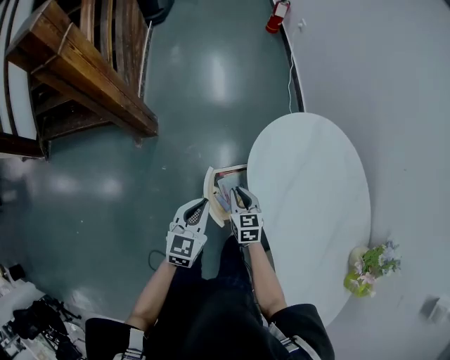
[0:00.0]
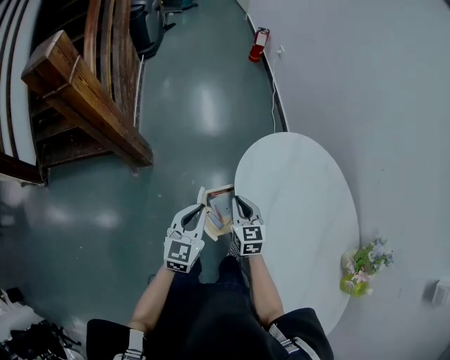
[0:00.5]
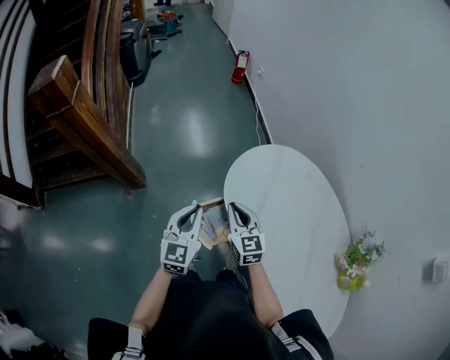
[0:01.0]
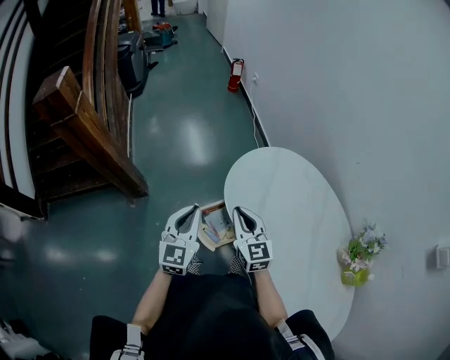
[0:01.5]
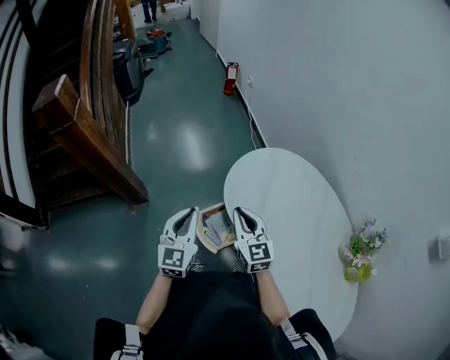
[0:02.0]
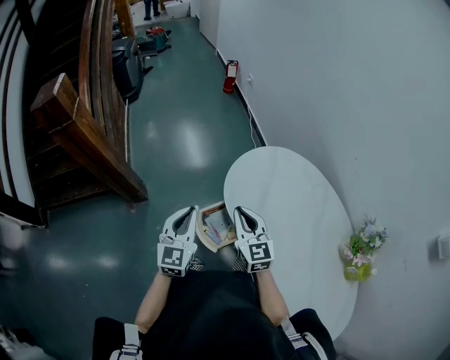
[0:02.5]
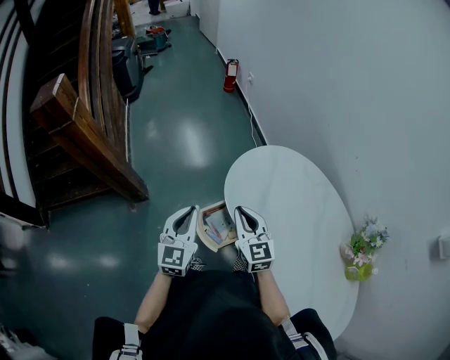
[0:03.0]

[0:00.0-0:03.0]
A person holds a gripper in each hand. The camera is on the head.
0:00.0 to 0:01.5: Both grippers travel together upward, approximately 20 cm. The left gripper rotates about 20 degrees; the right gripper turns by some 30 degrees.
0:01.5 to 0:03.0: Neither gripper changes place.

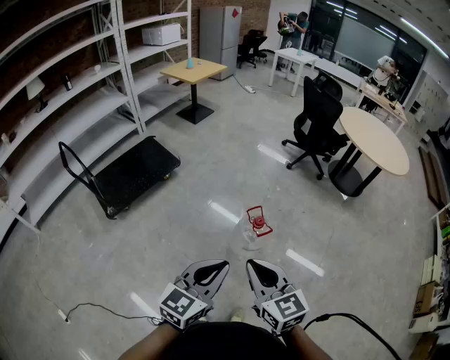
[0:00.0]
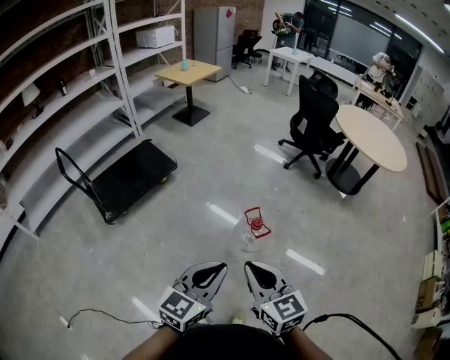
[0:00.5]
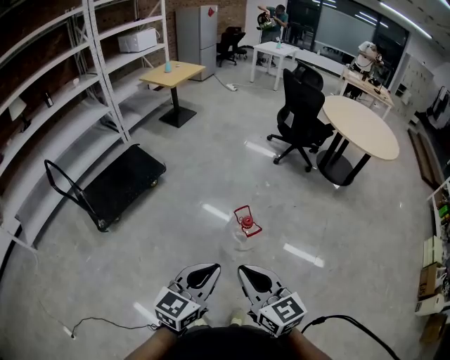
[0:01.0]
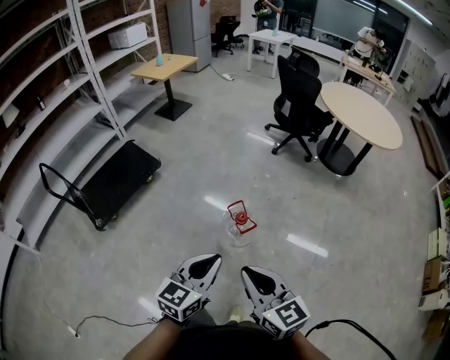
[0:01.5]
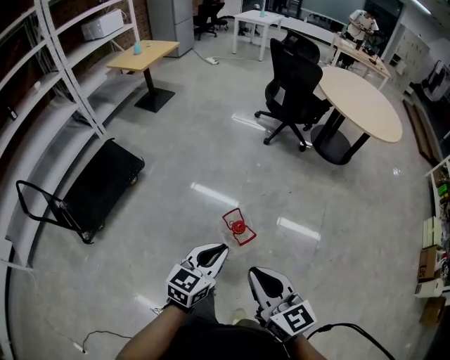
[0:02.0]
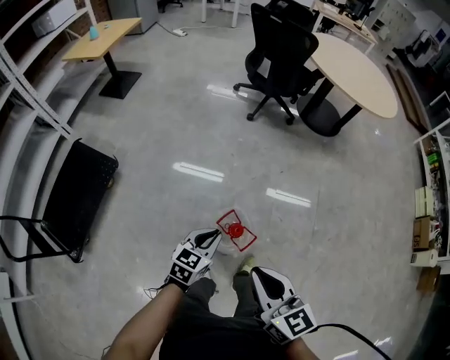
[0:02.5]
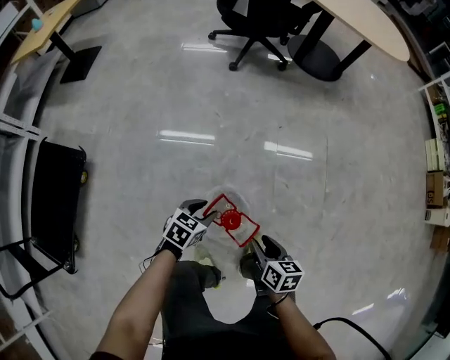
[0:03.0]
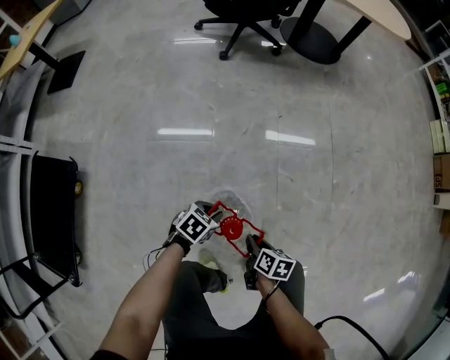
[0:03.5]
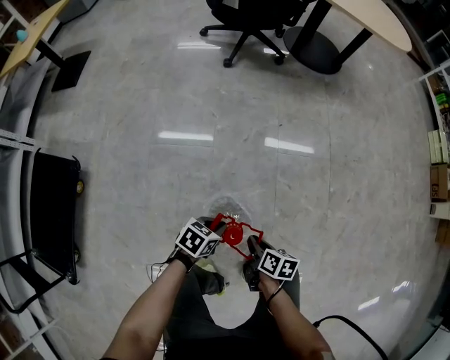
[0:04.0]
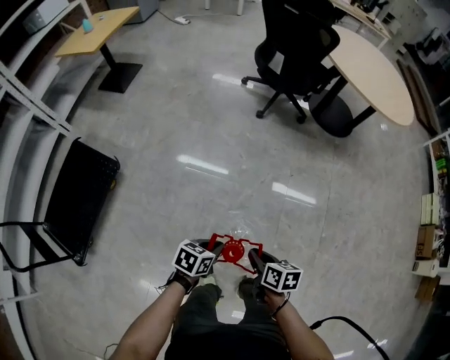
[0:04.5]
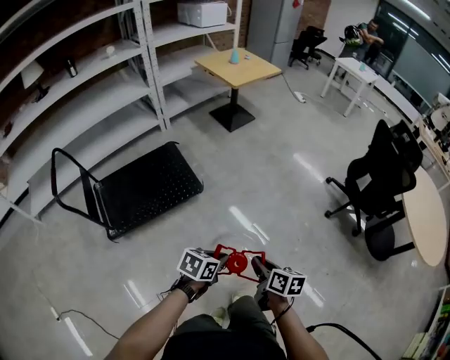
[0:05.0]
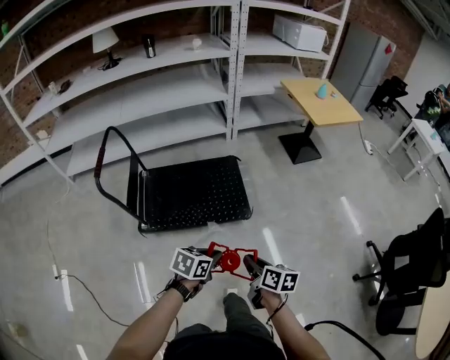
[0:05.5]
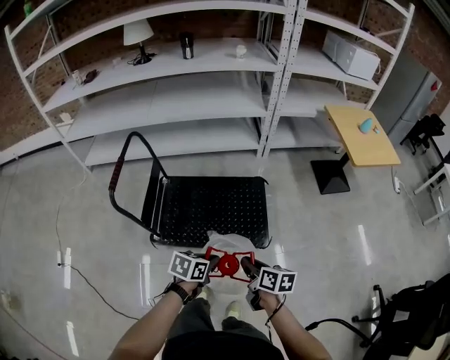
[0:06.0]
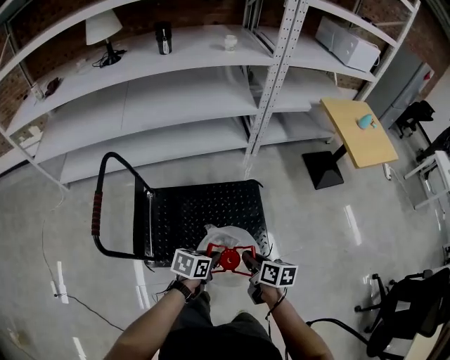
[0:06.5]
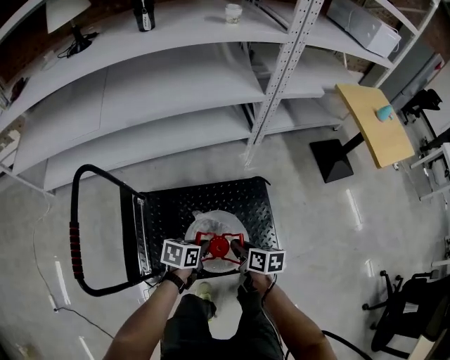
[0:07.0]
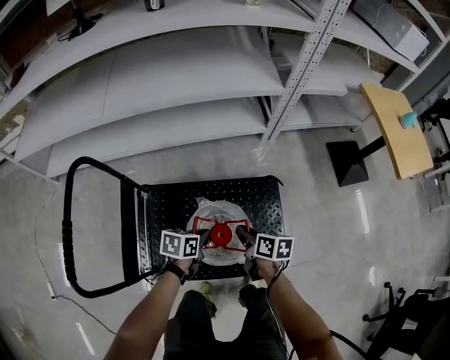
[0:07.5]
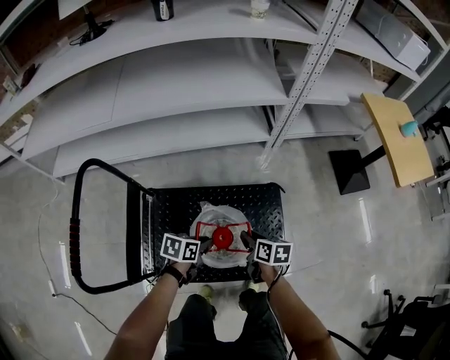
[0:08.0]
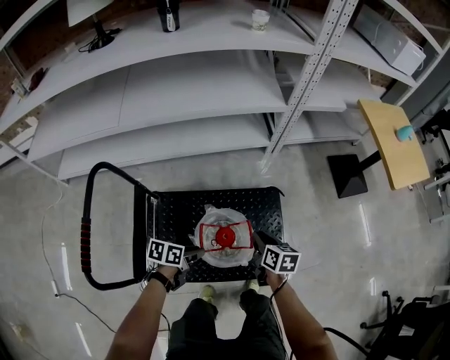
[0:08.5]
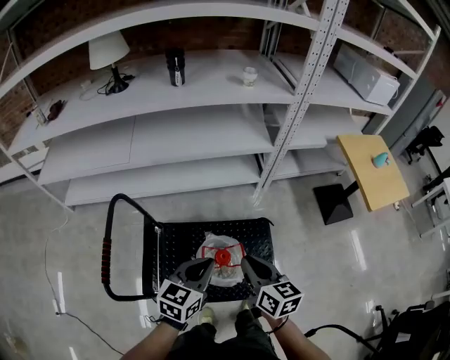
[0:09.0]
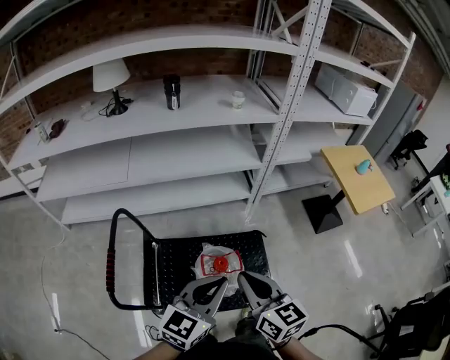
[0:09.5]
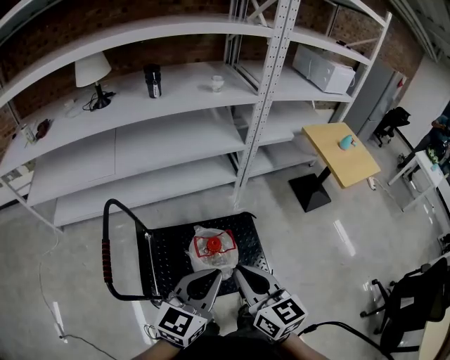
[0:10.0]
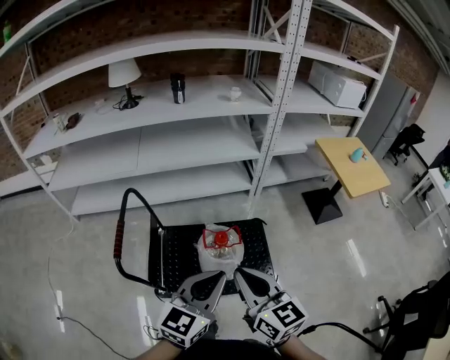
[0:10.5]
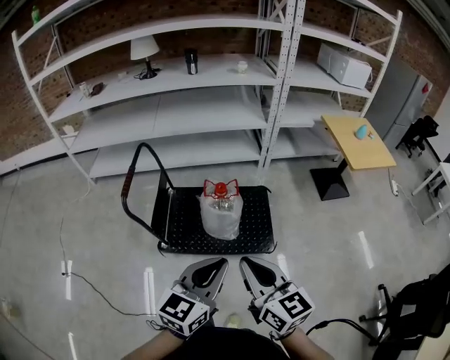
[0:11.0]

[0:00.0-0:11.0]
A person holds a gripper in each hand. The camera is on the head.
0:00.0 to 0:02.0: The left gripper moves forward and downward, some 30 cm, while the right gripper is displaced forward and to the right by some 20 cm.
0:02.0 to 0:03.5: Both grippers travel together downward, about 60 cm. The right gripper tilts its fingers about 40 degrees downward. Meanwhile the left gripper tips its fingers downward by some 40 degrees.
0:03.5 to 0:05.5: Both grippers are carried about 70 cm. The right gripper changes its angle by about 80 degrees, while the left gripper rotates roughly 90 degrees, and closes.
0:05.5 to 0:07.5: Both grippers are carried forward and to the left, approximately 70 cm. The left gripper goes roughly 25 cm downward, and changes its angle by roughly 20 degrees.
0:07.5 to 0:09.0: The two grippers go some 35 cm upward. The right gripper changes its angle by roughly 30 degrees; the left gripper swivels approximately 40 degrees, and opens and closes again.
0:09.0 to 0:11.0: Both grippers are carried backward, about 50 cm. The right gripper swivels some 20 degrees.

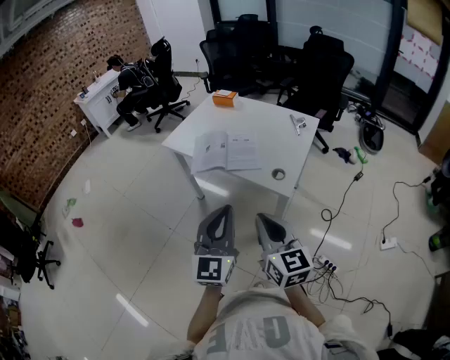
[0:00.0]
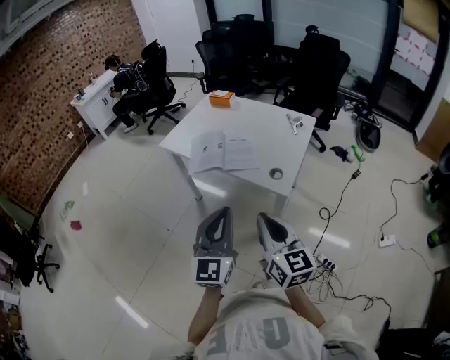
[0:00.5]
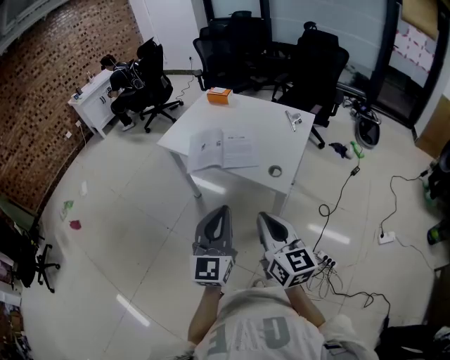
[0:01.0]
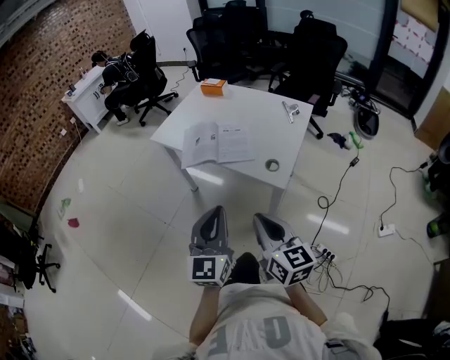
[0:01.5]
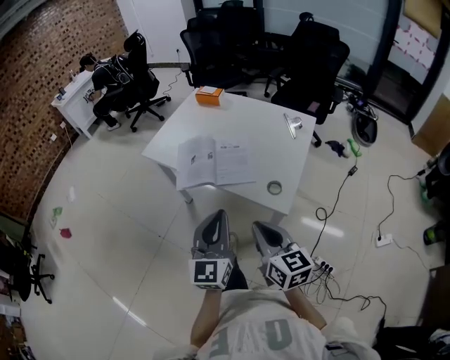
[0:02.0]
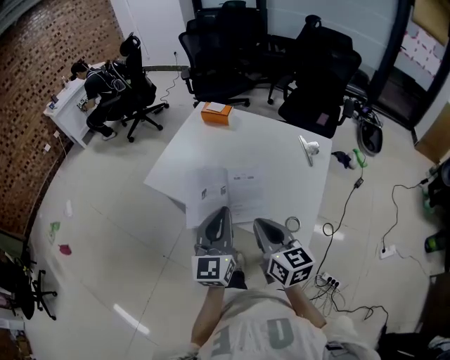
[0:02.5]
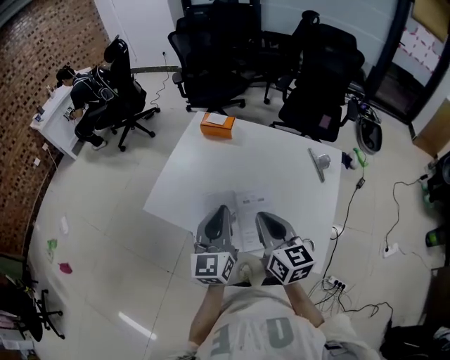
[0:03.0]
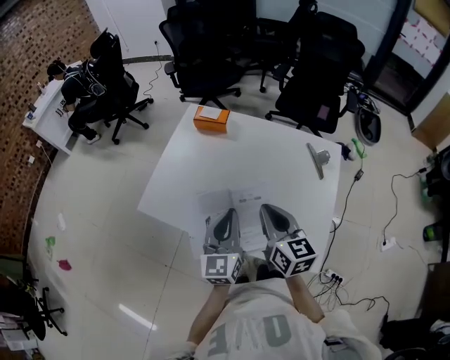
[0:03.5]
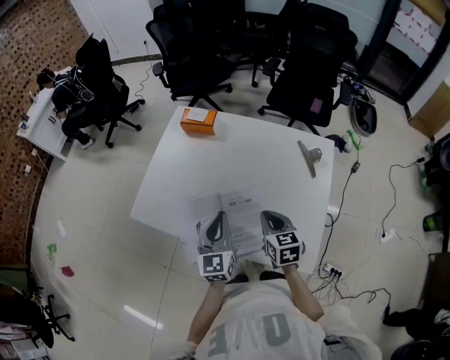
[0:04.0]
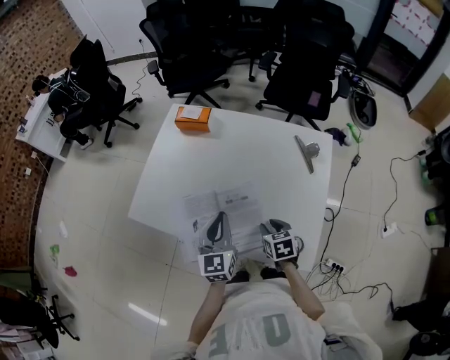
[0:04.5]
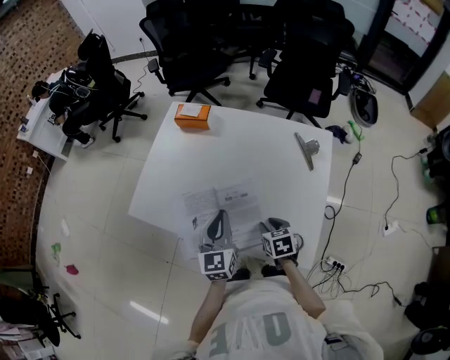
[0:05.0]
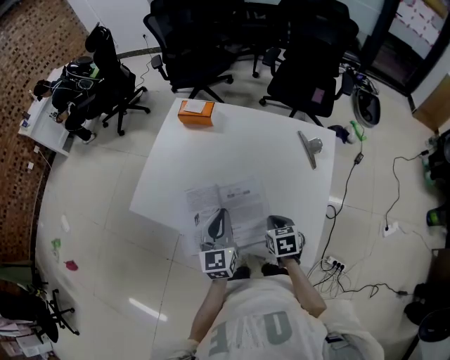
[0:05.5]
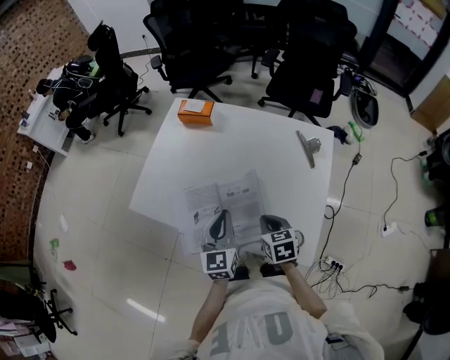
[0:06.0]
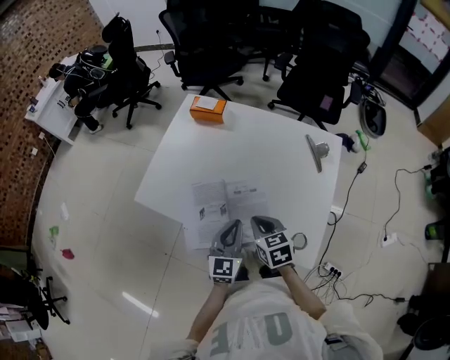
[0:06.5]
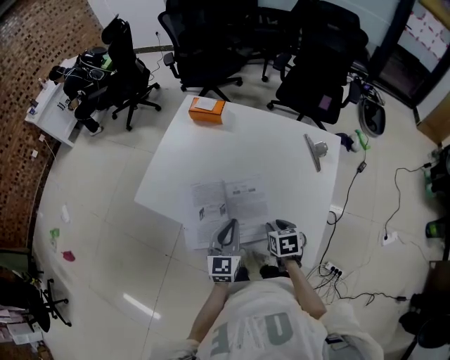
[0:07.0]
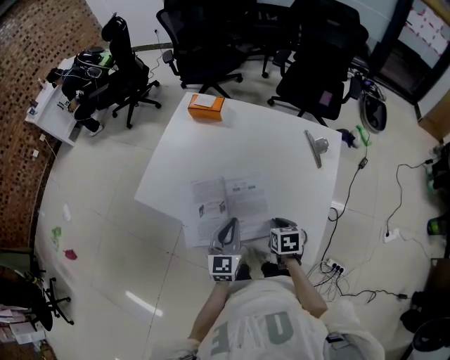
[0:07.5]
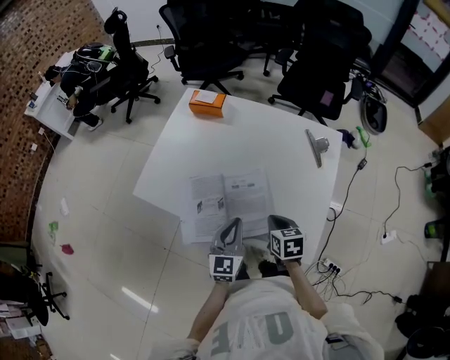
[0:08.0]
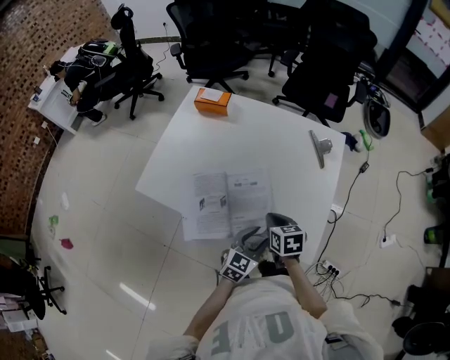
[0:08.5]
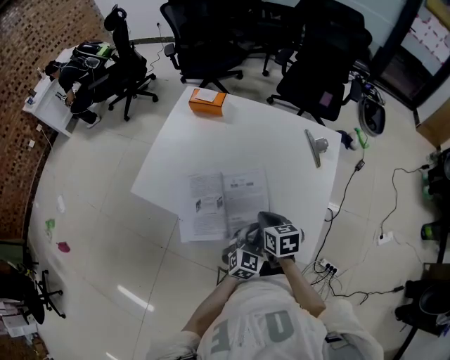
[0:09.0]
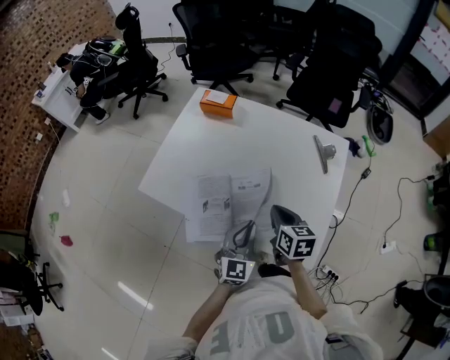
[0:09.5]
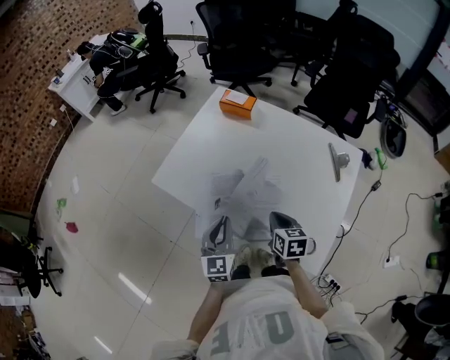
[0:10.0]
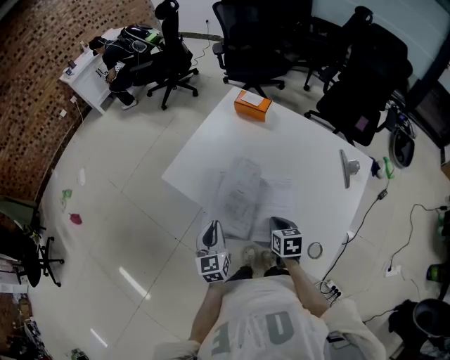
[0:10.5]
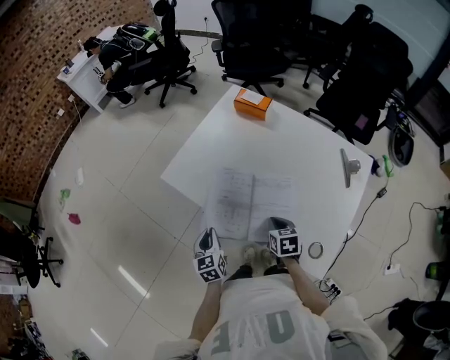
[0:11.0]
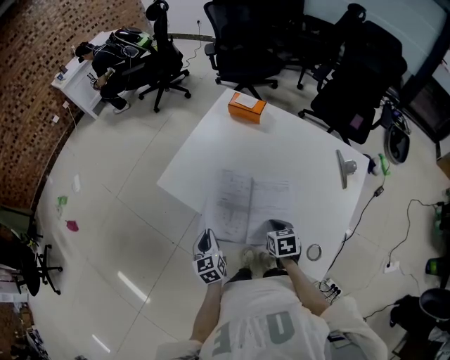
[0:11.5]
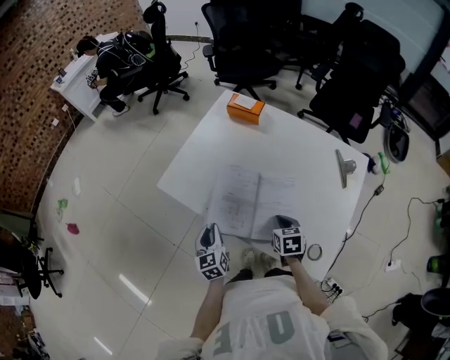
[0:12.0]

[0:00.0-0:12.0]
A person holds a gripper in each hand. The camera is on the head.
0:00.0 to 0:02.0: The grippers both shift forward and downward by roughly 15 cm.
0:02.0 to 0:04.0: The grippers both shift forward by some 35 cm. The right gripper swivels approximately 30 degrees.
0:04.0 to 0:06.0: The right gripper opens, then closes again.
0:06.0 to 0:08.0: The right gripper travels downward and back again, about 5 cm each way, and opens, then closes once more; the left gripper moves backward, roughly 5 cm.
0:08.0 to 0:10.0: The right gripper moves about 5 cm. Meanwhile the left gripper moves to the left, about 10 cm, and opens, then closes again.
0:10.0 to 0:12.0: The left gripper moves downward and to the left, roughly 15 cm, and swivels some 20 degrees. The right gripper shifts some 5 cm downward.
